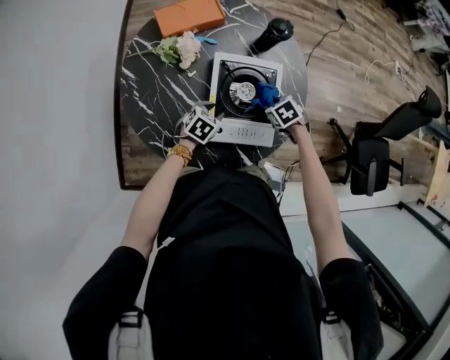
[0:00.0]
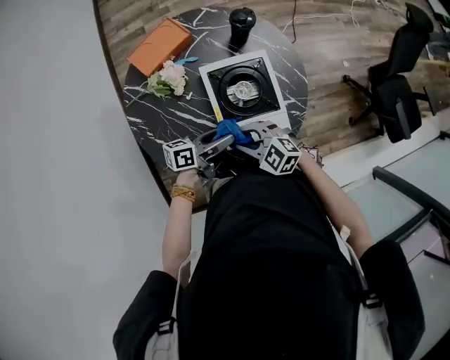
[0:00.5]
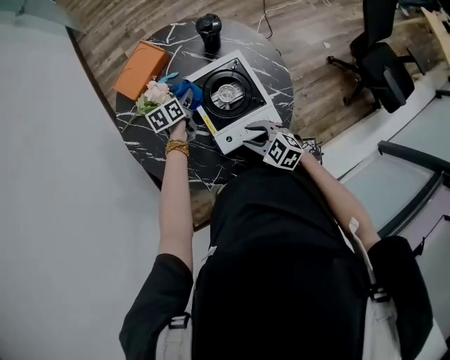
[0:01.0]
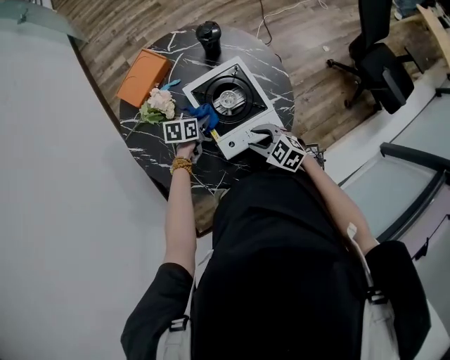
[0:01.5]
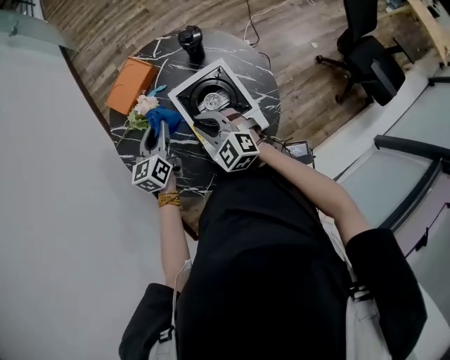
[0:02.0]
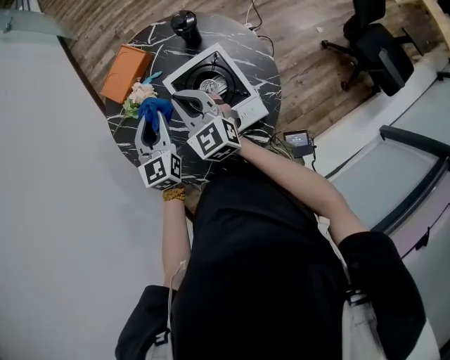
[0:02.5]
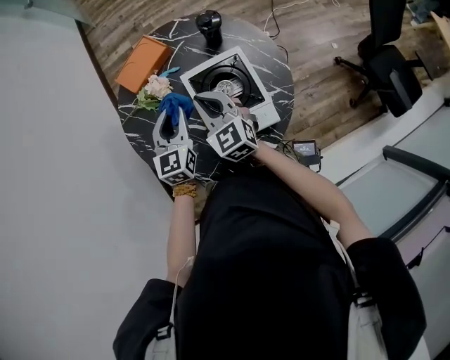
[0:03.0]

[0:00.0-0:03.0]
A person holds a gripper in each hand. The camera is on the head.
0:00.0 to 0:01.5: The left gripper reaches some 10 cm upward, then returns, while the right gripper shifts by approximately 20 cm, and rotates about 30 degrees.
0:01.5 to 0:03.0: The left gripper travels upward by roughly 20 cm, and points its fingers approximately 30 degrees further upward, while the right gripper travels upward, forward and to the left by some 20 cm, swivels approximately 30 degrees, and closes.

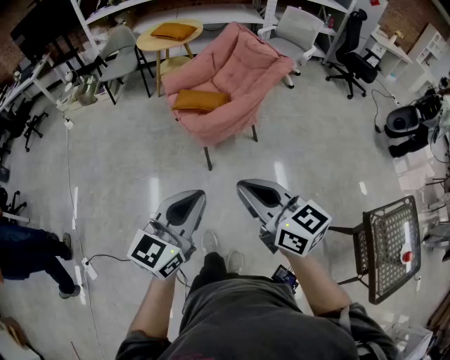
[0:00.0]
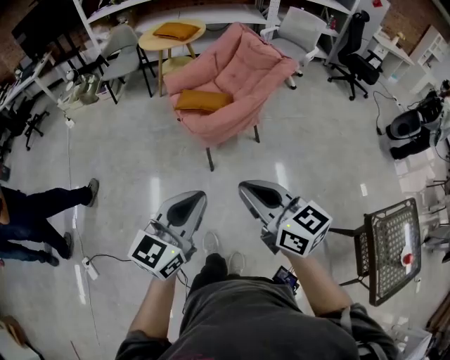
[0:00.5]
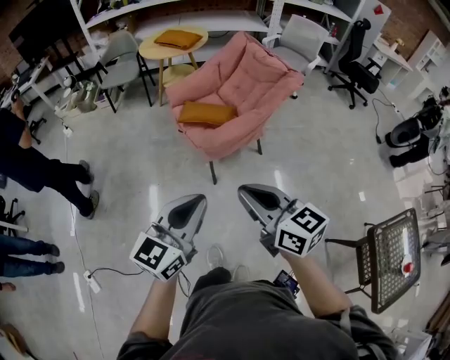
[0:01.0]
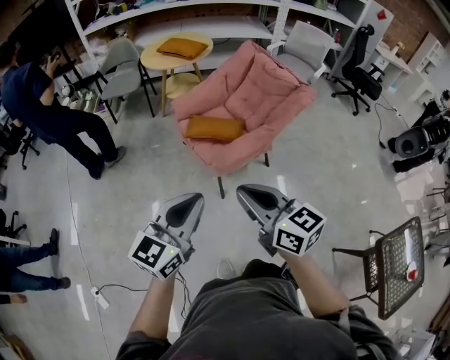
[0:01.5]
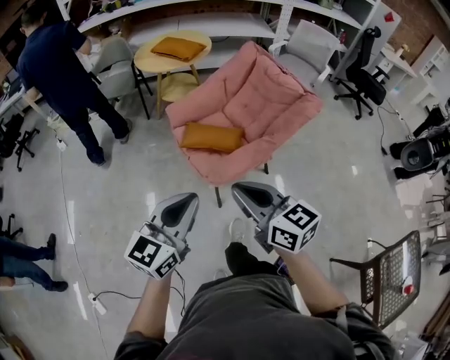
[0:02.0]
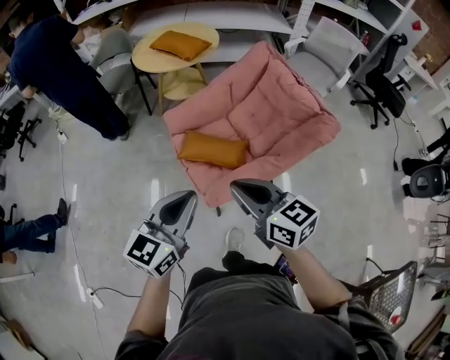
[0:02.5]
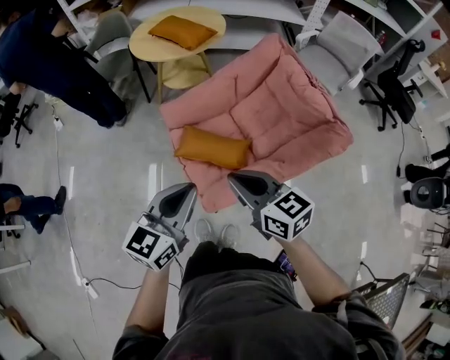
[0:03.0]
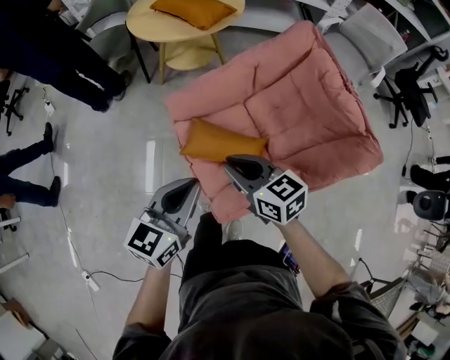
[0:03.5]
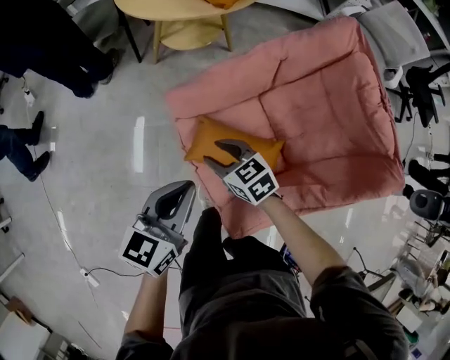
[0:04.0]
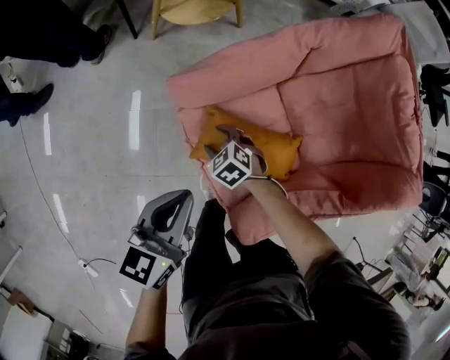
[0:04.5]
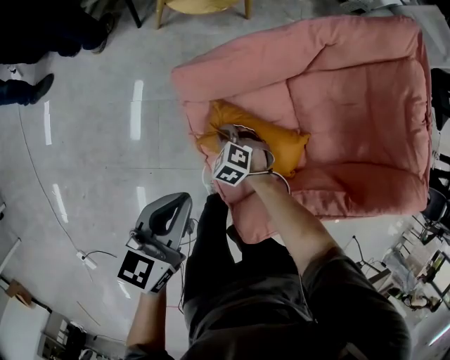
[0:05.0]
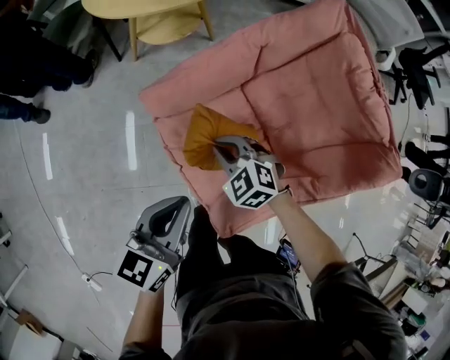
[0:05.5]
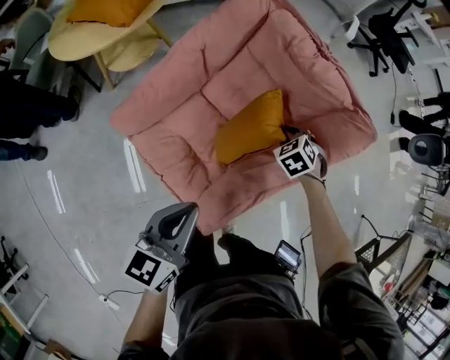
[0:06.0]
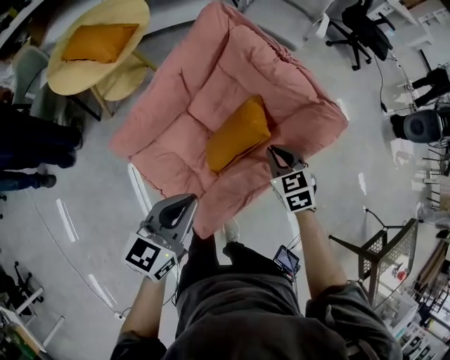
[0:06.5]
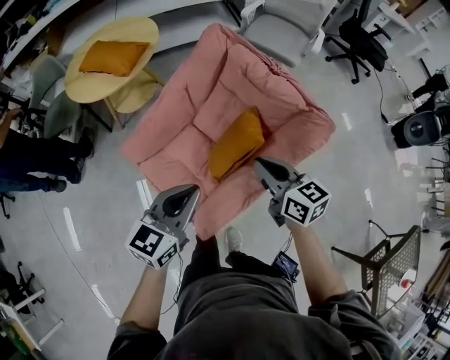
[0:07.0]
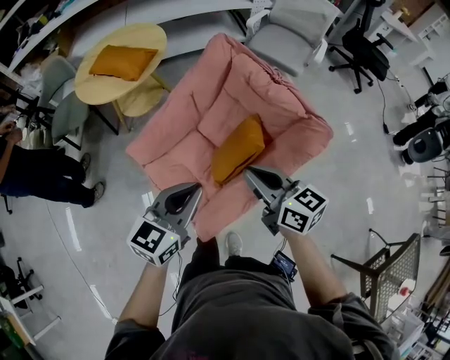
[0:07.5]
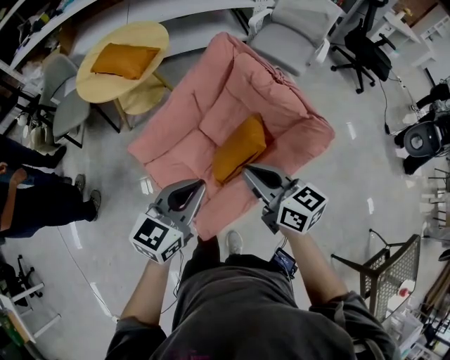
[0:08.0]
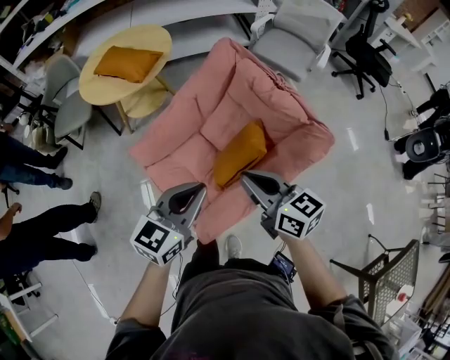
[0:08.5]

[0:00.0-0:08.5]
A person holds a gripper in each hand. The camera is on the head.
0:00.0 to 0:02.0: The two grippers go about 35 cm forward.
0:02.0 to 0:04.0: Both grippers are carried forward, some 60 cm. The right gripper goes about 40 cm downward, tilts its fingers about 30 degrees downward, and opens; the left gripper heads downward, covering roughly 25 cm, and rotates some 20 degrees.
0:04.0 to 0:06.5: The right gripper moves approximately 20 cm downward and comes back, rotates roughly 40 degrees, and closes up; the left gripper shifts by some 25 cm, and turns by roughly 20 degrees.
0:06.5 to 0:08.5: The right gripper shifts about 20 cm upward and to the left, and tilts its fingers about 30 degrees upward; the left gripper is displaced upward by approximately 10 cm.

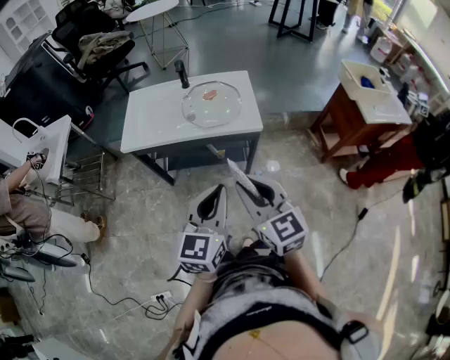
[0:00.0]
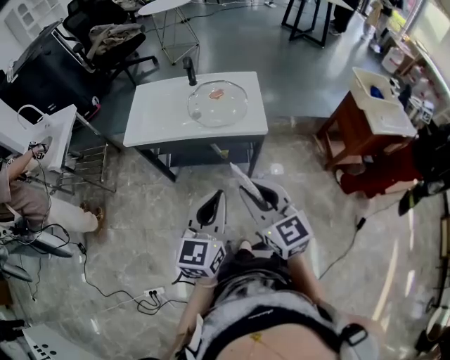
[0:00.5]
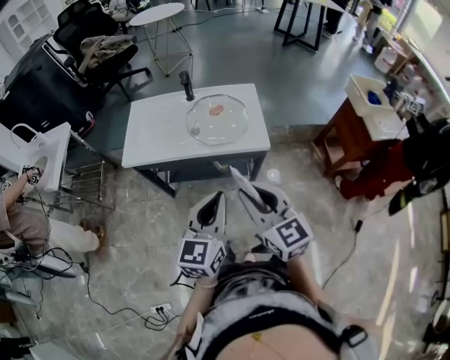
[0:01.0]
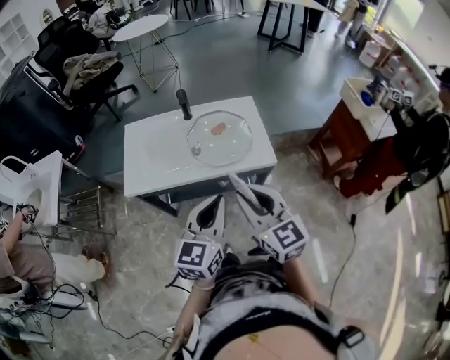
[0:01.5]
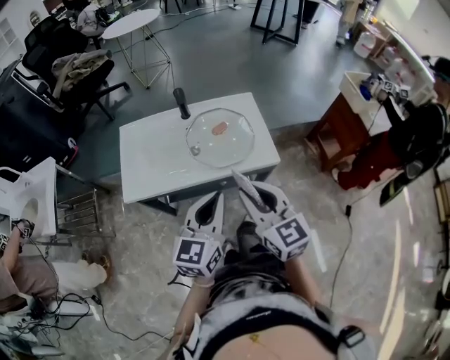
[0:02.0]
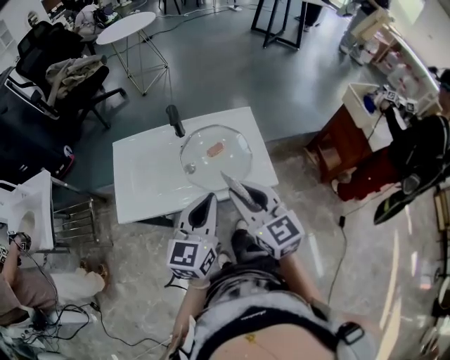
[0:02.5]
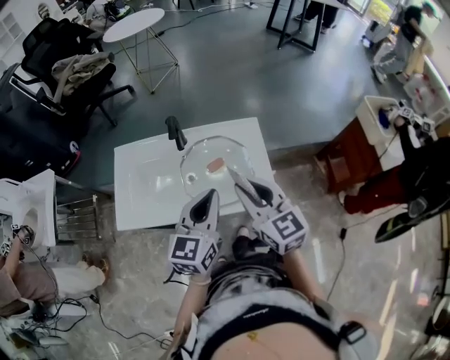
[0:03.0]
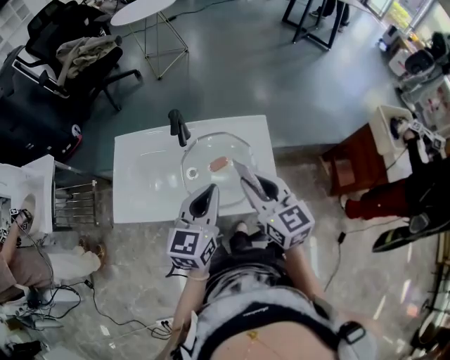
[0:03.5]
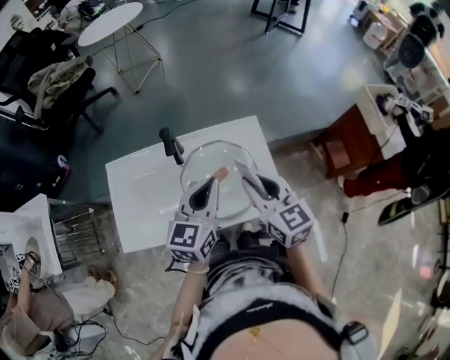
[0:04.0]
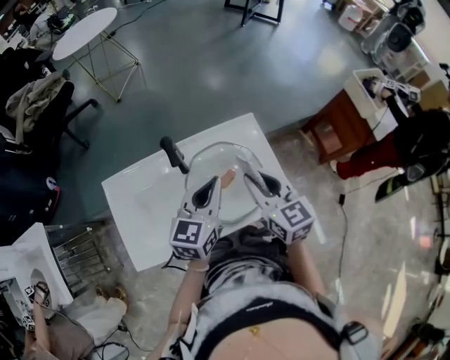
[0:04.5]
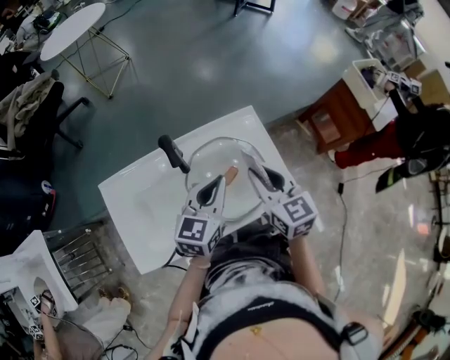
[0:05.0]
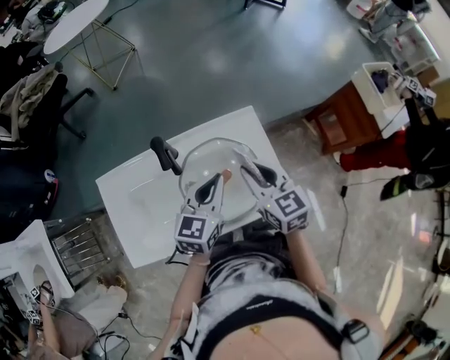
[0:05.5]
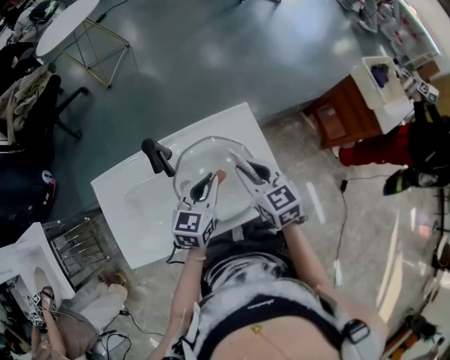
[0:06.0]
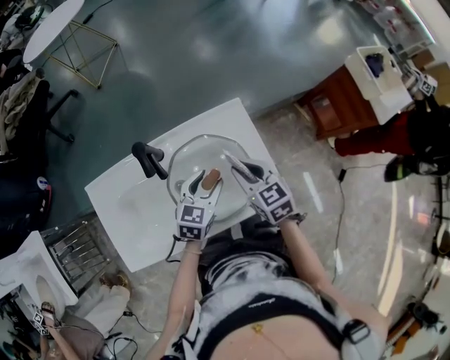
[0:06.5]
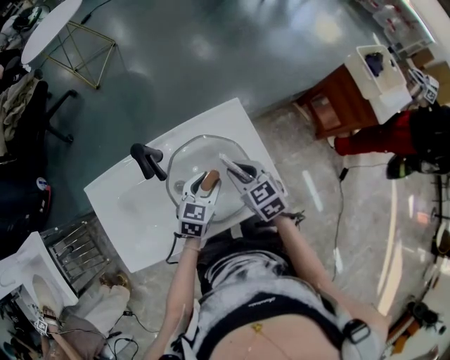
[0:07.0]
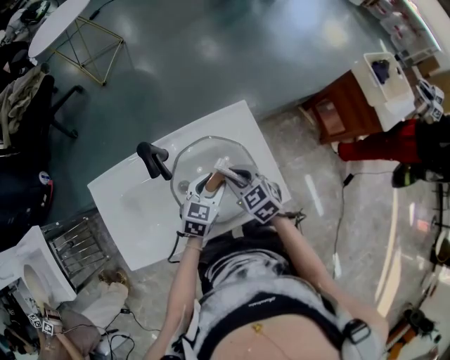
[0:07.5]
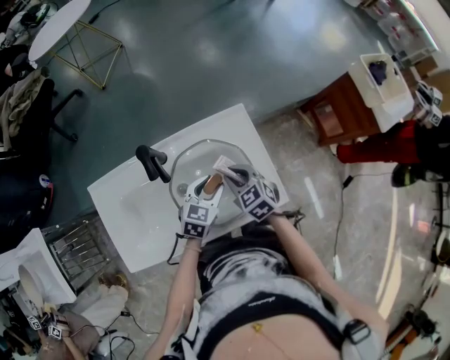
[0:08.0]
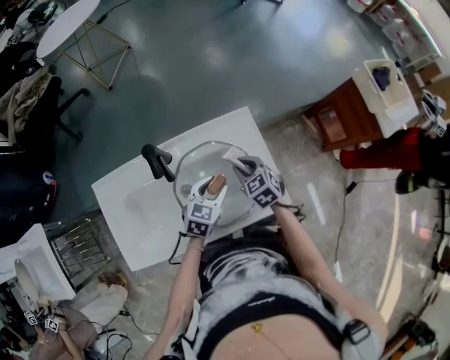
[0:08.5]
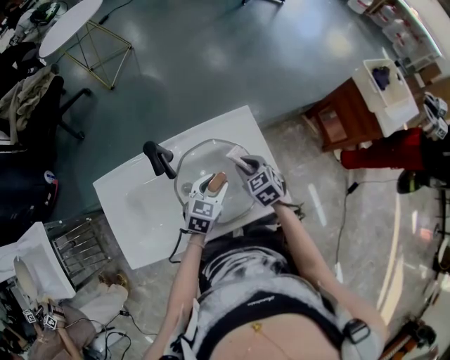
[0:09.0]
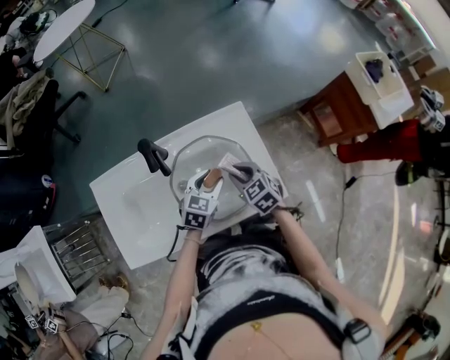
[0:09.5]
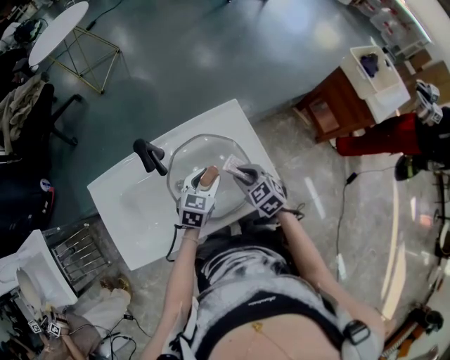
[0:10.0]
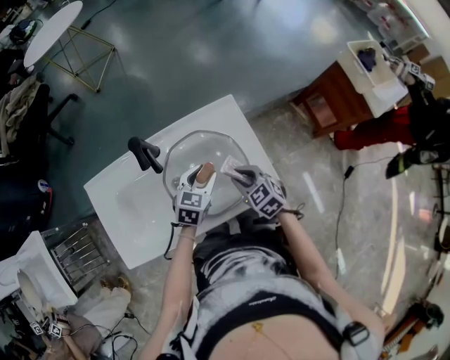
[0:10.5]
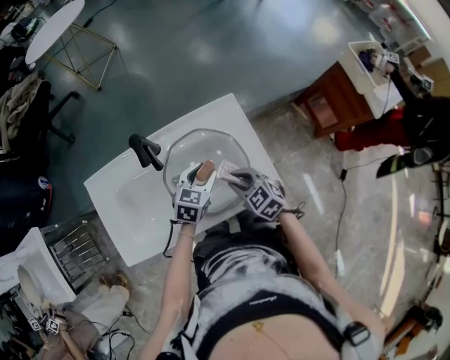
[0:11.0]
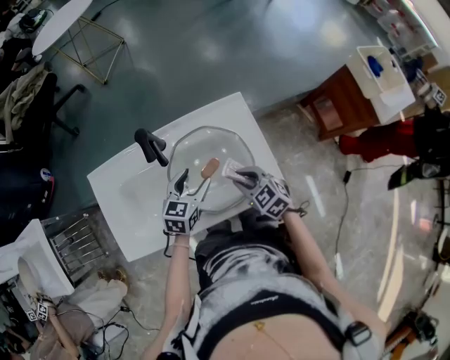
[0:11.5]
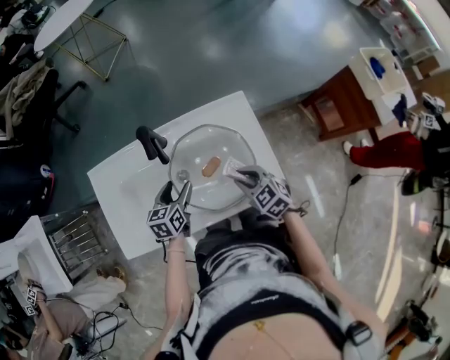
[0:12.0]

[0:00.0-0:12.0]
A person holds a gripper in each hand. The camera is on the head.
0:00.0 to 0:02.0: The left gripper is displaced forward and to the left by about 20 cm; the right gripper is displaced forward by approximately 20 cm.
0:02.0 to 0:04.0: Both grippers travel together forward, some 25 cm.
0:04.0 to 0:06.0: The grippers both shift downward and forward by approximately 10 cm.
0:06.0 to 0:08.0: The grippers both shift downward by roughly 10 cm. The left gripper opens up; the right gripper swivels about 20 degrees.
0:08.0 to 0:10.0: The right gripper changes place by roughly 5 cm.
0:10.0 to 0:12.0: The left gripper moves to the left, approximately 15 cm, turns by some 30 degrees, and opens up.

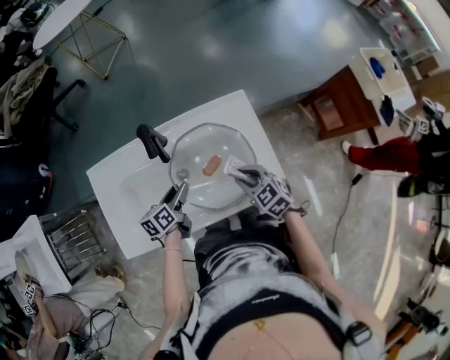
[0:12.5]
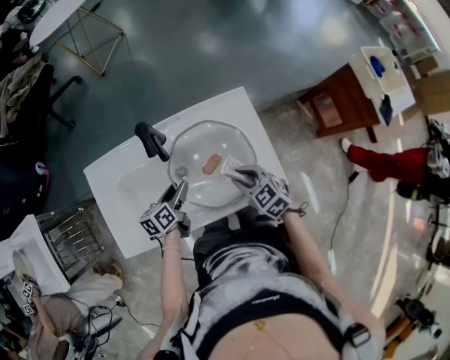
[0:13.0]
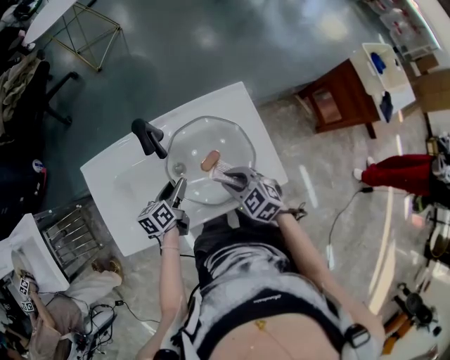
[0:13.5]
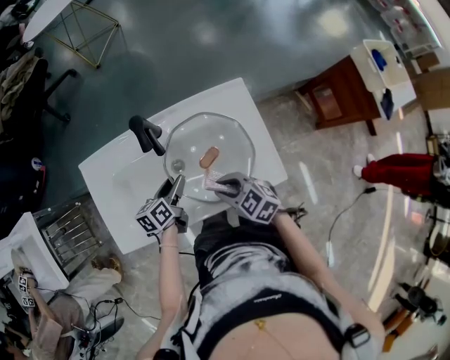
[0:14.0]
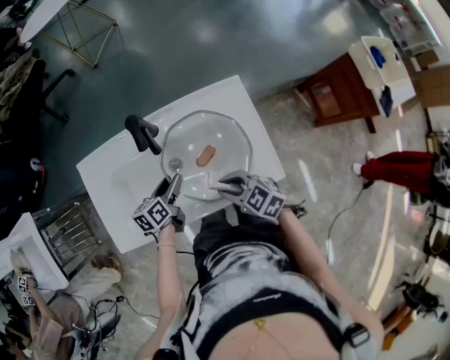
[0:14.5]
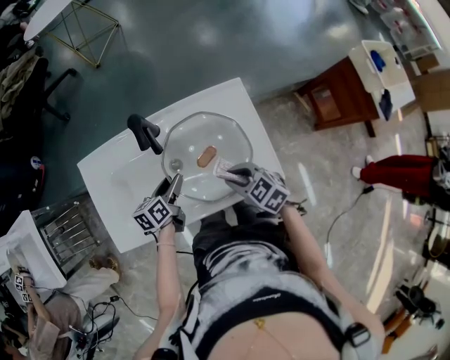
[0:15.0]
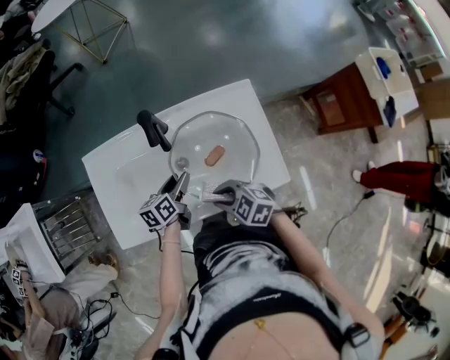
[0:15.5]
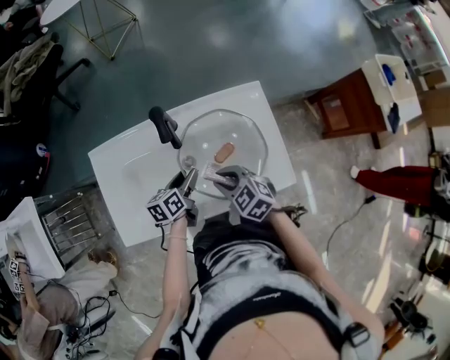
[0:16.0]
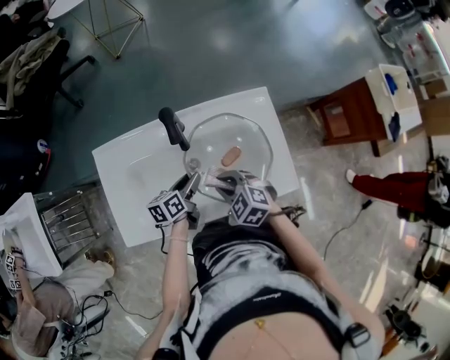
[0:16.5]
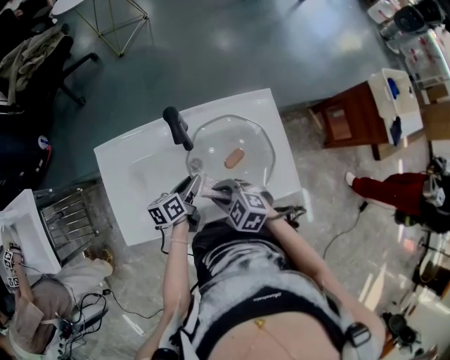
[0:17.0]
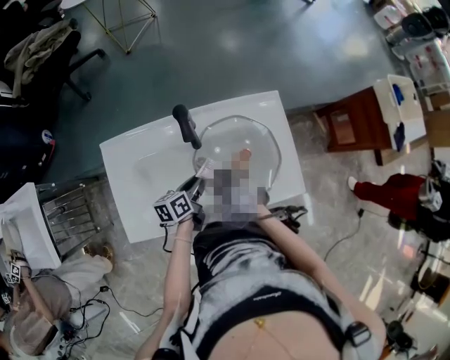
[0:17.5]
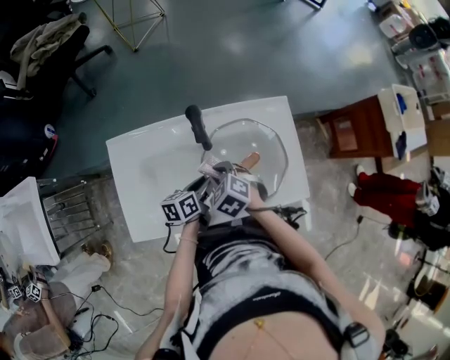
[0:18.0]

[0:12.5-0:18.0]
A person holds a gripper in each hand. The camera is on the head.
0:12.5 to 0:14.5: The right gripper travels to the left by about 5 cm.
0:14.5 to 0:16.0: The right gripper shifts by approximately 5 cm.
0:16.0 to 0:18.0: The right gripper travels to the left by some 5 cm.
